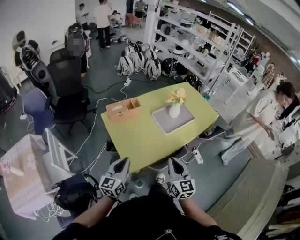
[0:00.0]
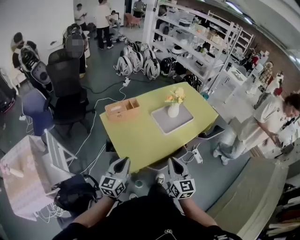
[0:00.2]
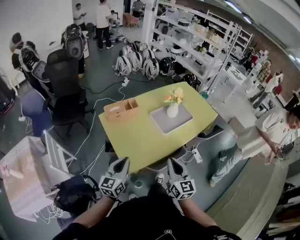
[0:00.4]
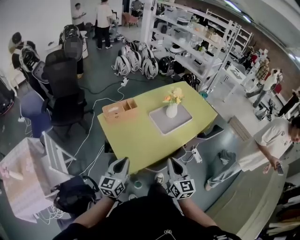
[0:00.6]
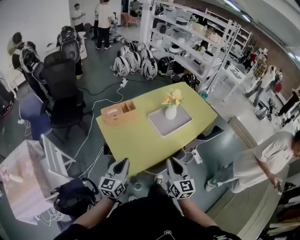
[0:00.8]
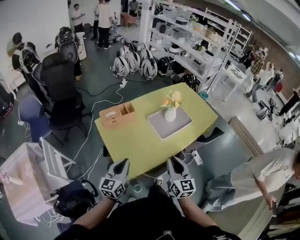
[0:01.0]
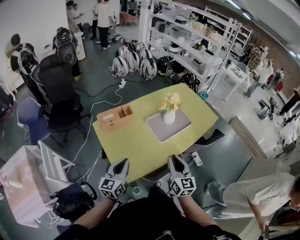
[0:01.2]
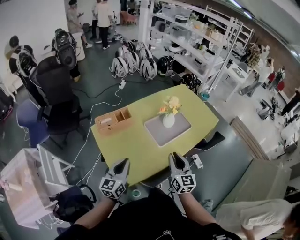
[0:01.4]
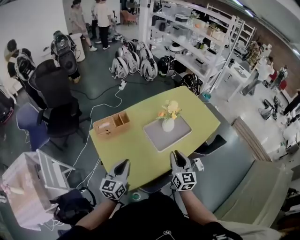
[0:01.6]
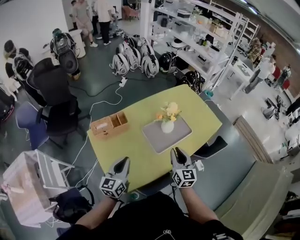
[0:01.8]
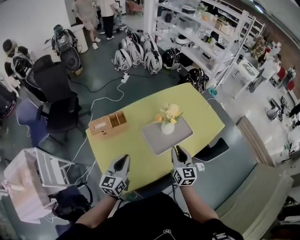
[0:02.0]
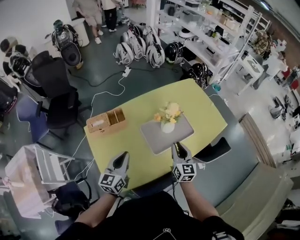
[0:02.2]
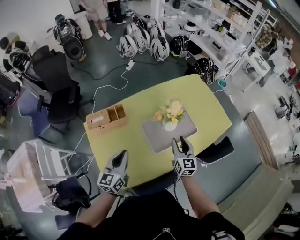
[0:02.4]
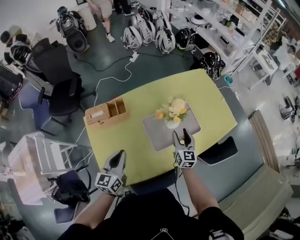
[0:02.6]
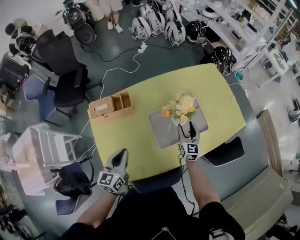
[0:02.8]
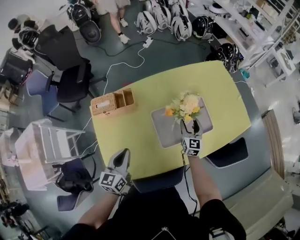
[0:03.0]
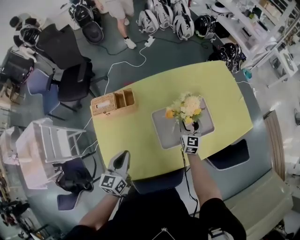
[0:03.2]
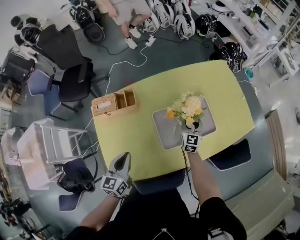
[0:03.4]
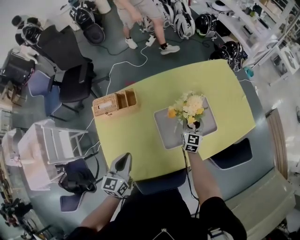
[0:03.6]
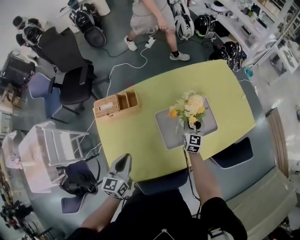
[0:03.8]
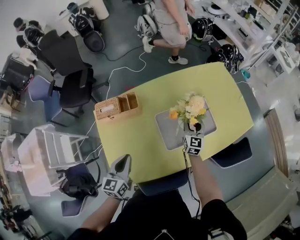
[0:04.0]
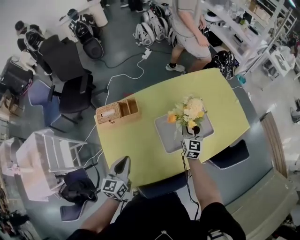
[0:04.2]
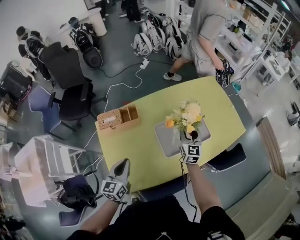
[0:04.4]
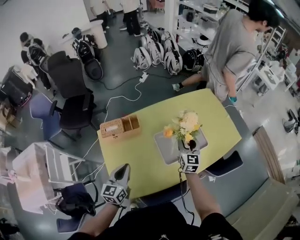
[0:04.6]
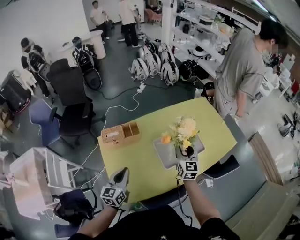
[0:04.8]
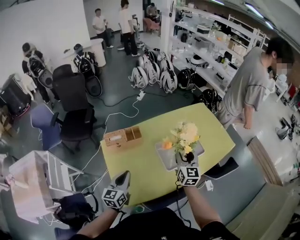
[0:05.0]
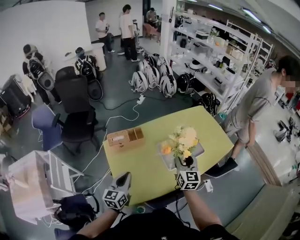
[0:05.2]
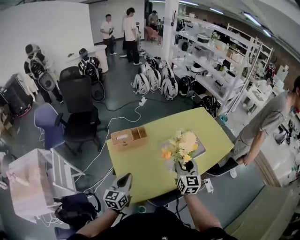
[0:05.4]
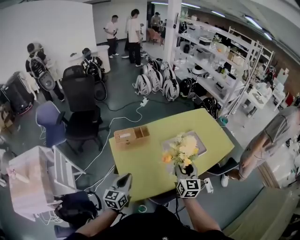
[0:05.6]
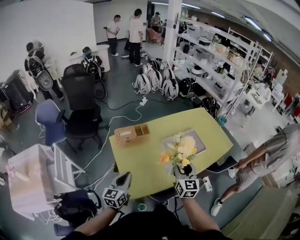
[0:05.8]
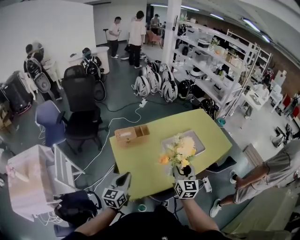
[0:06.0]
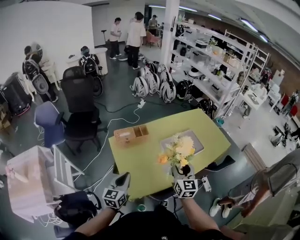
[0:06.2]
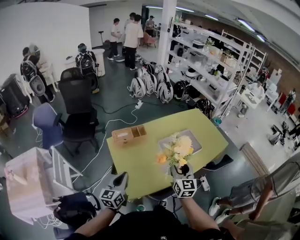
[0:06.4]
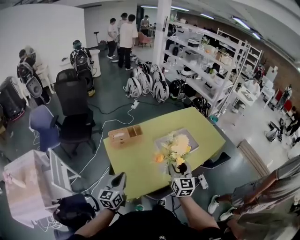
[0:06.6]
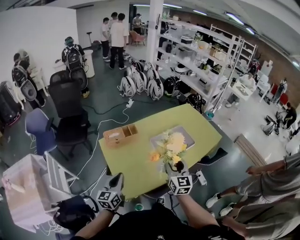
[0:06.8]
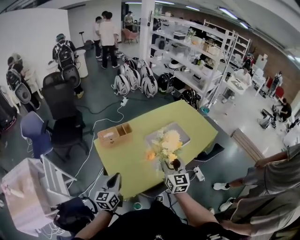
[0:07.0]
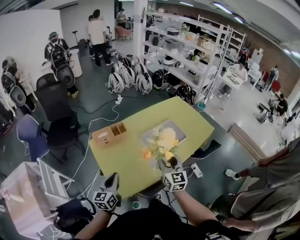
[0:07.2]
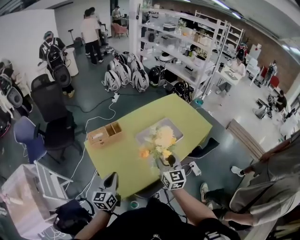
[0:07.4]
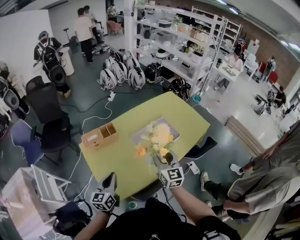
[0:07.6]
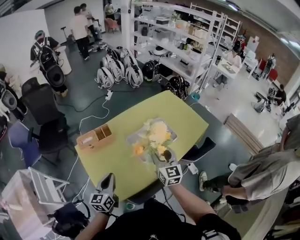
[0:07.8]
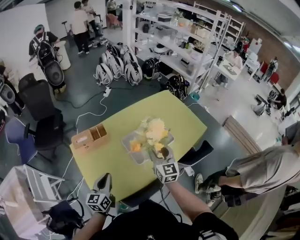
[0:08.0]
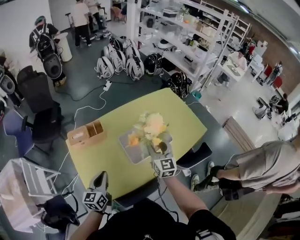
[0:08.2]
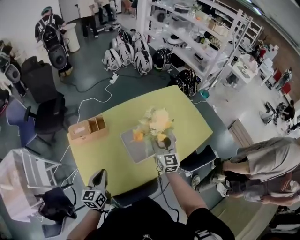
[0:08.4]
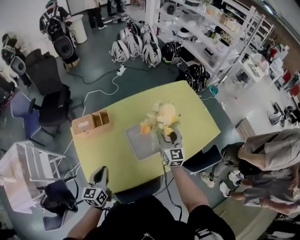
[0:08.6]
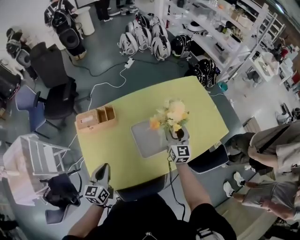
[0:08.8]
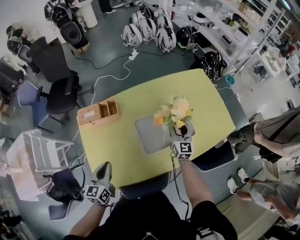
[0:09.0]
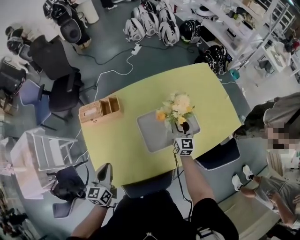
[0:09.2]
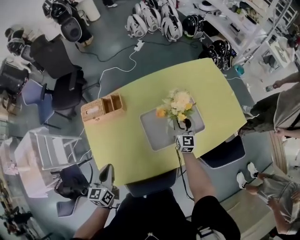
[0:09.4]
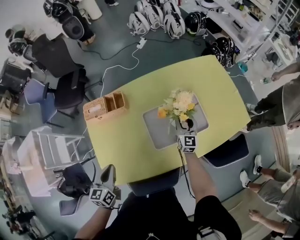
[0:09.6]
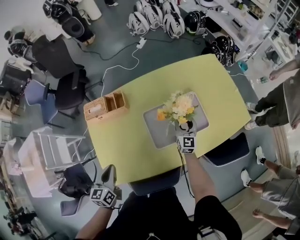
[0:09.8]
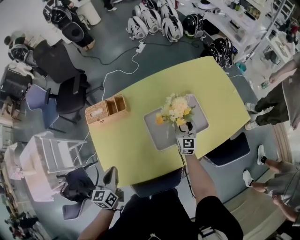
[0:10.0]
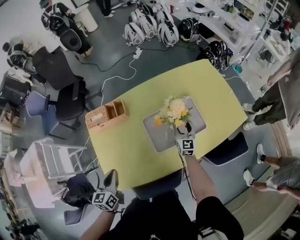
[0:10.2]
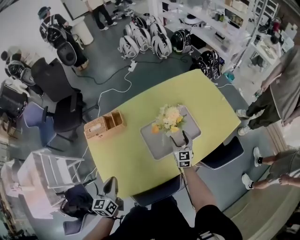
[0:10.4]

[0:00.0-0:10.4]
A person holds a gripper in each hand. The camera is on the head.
0:00.0 to 0:01.4: The right gripper is displaced forward and to the right by about 20 cm. The left gripper is displaced forward by about 15 cm.
0:01.4 to 0:03.0: The left gripper is displaced forward and downward by some 20 cm, and rotates roughly 20 degrees. The right gripper heads forward and downward, covering roughly 50 cm, and opens its fingers.
0:03.0 to 0:04.4: The left gripper ends up about 5 cm from where it was; the right gripper travels upward by roughly 10 cm.
0:04.4 to 0:06.0: The left gripper moves backward and to the left, some 25 cm; the right gripper travels backward, upward and to the left by about 40 cm.
0:06.0 to 0:07.4: Both grippers move to the right, approximately 5 cm.
0:07.4 to 0:09.0: The right gripper goes roughly 40 cm forward, downward and to the right; the left gripper moves forward, to the right and downward, roughly 20 cm.
0:09.0 to 0:10.4: The right gripper heads downward, covering roughly 10 cm, while the left gripper changes place by some 5 cm.

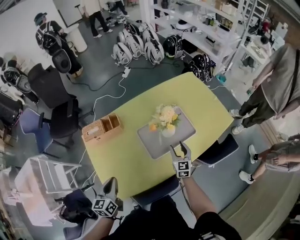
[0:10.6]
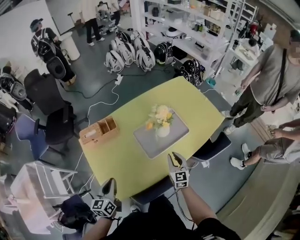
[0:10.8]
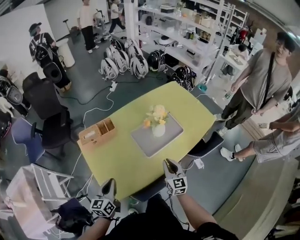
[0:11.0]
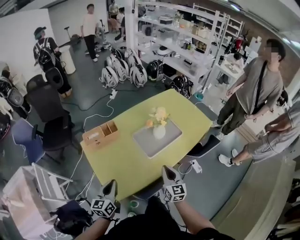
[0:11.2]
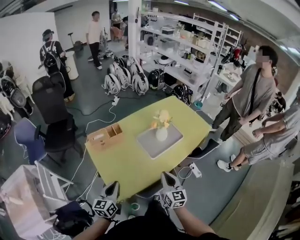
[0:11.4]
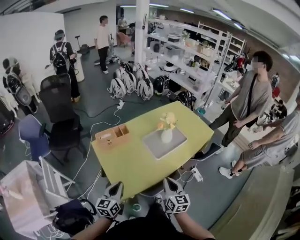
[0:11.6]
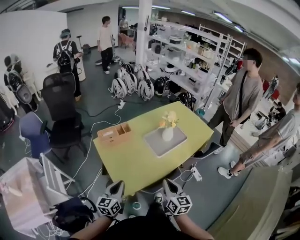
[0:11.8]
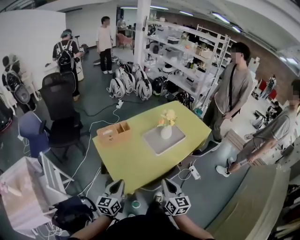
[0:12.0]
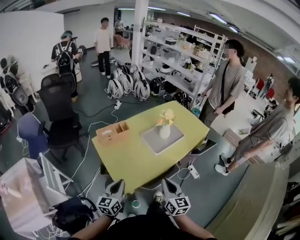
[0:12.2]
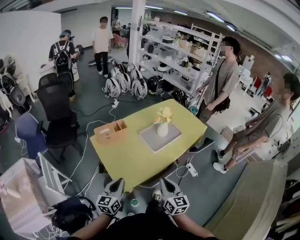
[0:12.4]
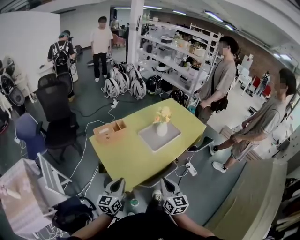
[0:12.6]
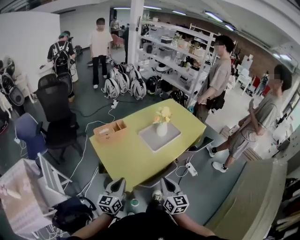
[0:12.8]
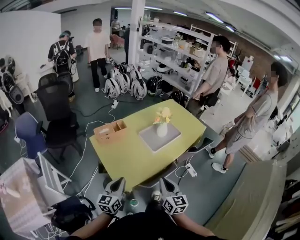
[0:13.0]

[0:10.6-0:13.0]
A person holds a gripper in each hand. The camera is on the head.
0:10.6 to 0:11.8: The right gripper goes roughly 50 cm backward, upward and to the left, swivels roughly 20 degrees, and closes up, while the left gripper goes roughly 20 cm backward, and rotates some 20 degrees.
0:11.8 to 0:13.0: The right gripper goes about 5 cm backward.

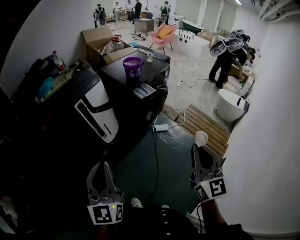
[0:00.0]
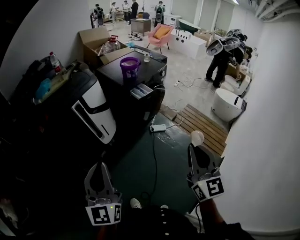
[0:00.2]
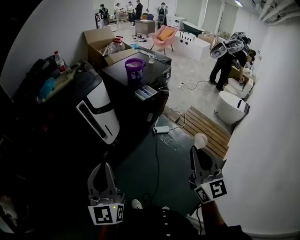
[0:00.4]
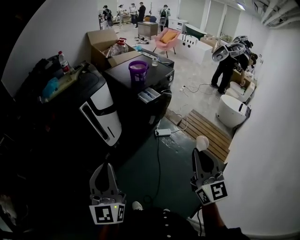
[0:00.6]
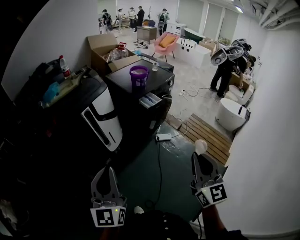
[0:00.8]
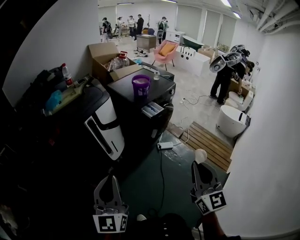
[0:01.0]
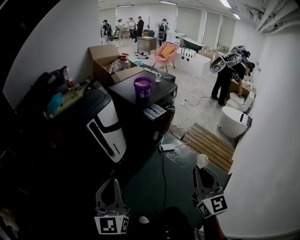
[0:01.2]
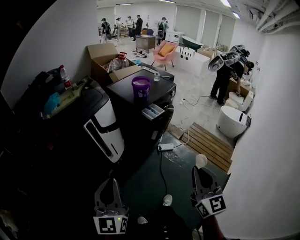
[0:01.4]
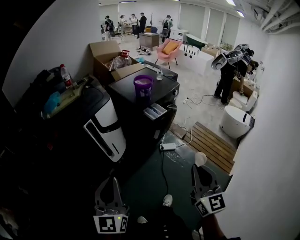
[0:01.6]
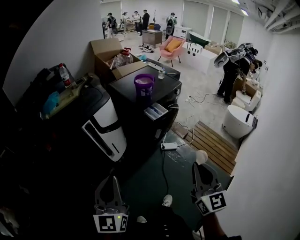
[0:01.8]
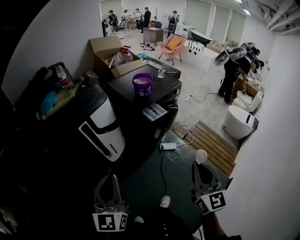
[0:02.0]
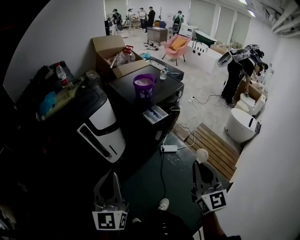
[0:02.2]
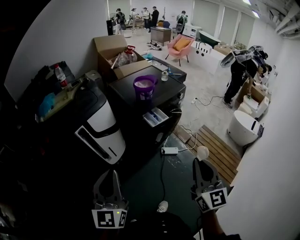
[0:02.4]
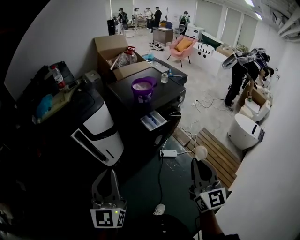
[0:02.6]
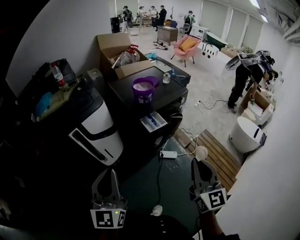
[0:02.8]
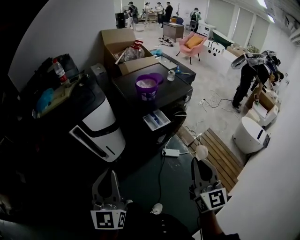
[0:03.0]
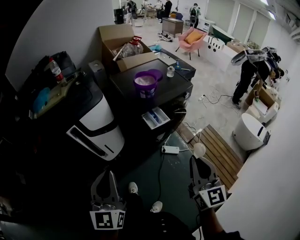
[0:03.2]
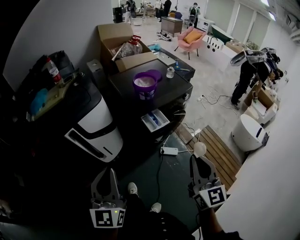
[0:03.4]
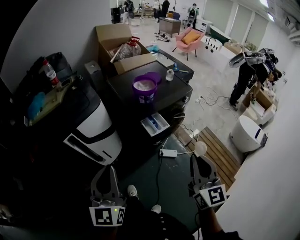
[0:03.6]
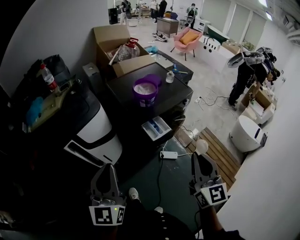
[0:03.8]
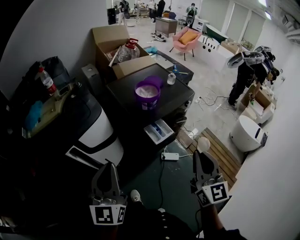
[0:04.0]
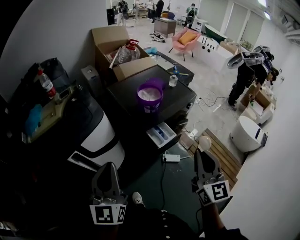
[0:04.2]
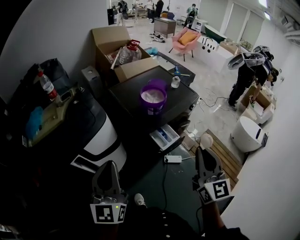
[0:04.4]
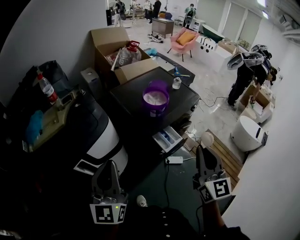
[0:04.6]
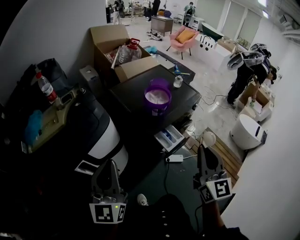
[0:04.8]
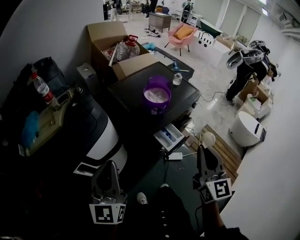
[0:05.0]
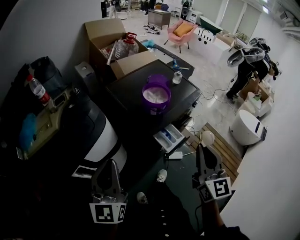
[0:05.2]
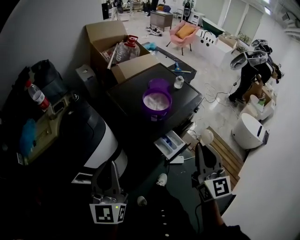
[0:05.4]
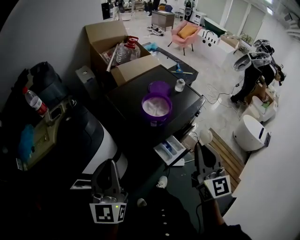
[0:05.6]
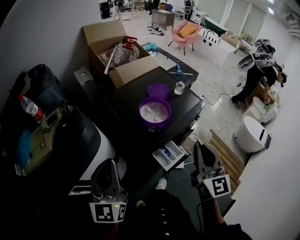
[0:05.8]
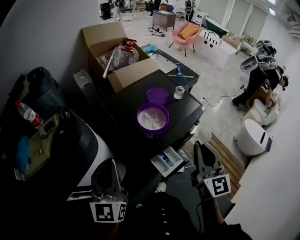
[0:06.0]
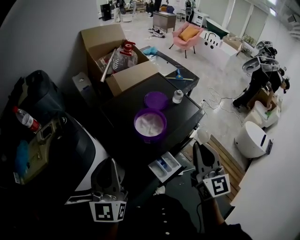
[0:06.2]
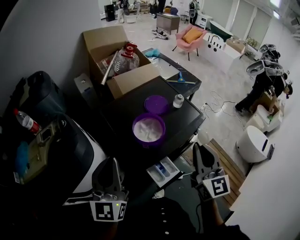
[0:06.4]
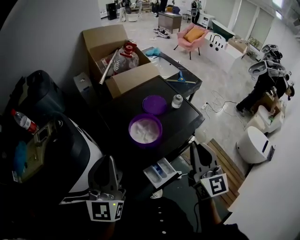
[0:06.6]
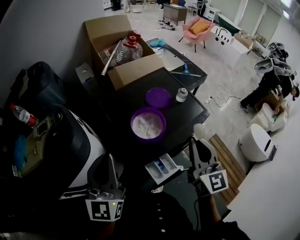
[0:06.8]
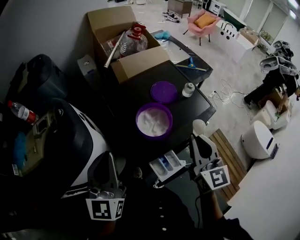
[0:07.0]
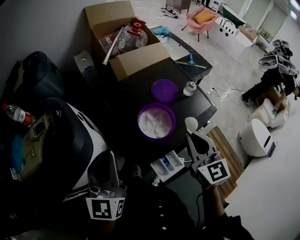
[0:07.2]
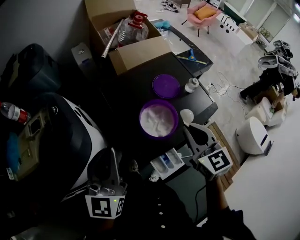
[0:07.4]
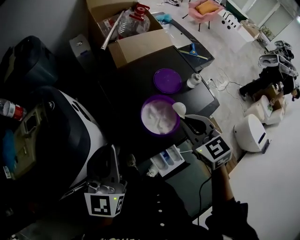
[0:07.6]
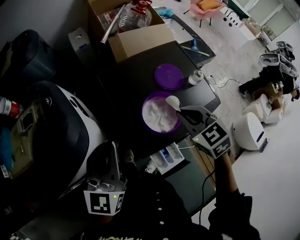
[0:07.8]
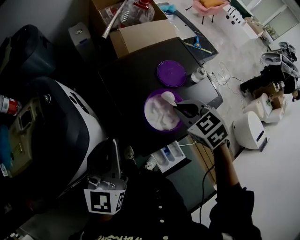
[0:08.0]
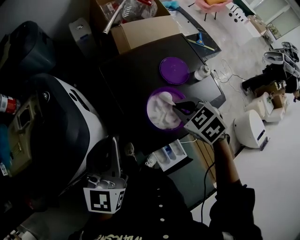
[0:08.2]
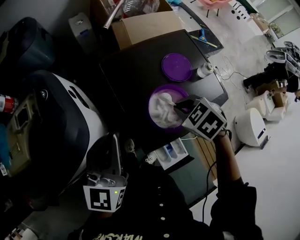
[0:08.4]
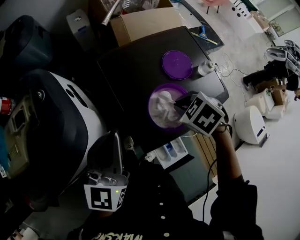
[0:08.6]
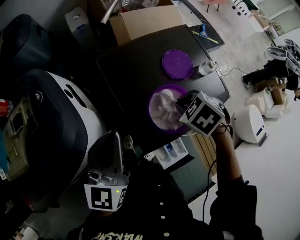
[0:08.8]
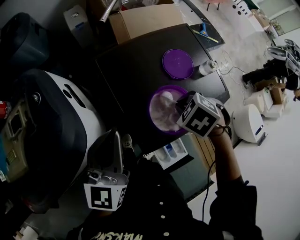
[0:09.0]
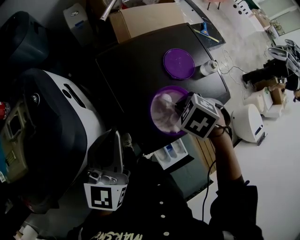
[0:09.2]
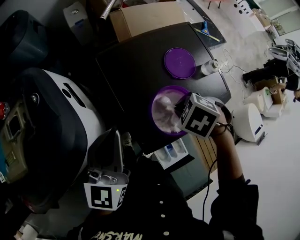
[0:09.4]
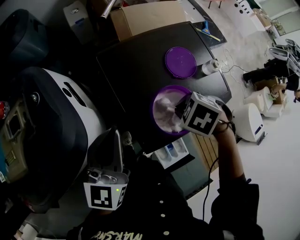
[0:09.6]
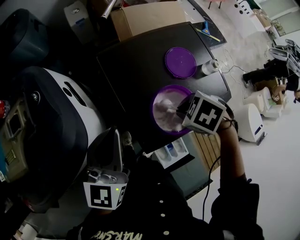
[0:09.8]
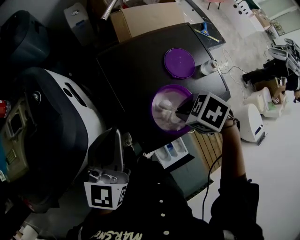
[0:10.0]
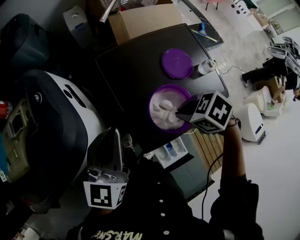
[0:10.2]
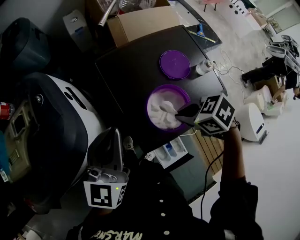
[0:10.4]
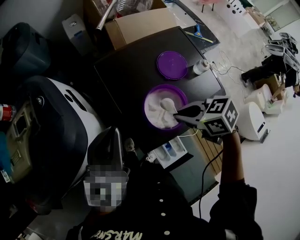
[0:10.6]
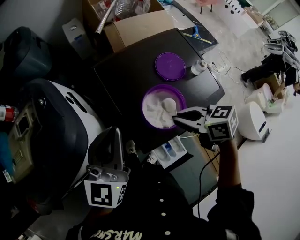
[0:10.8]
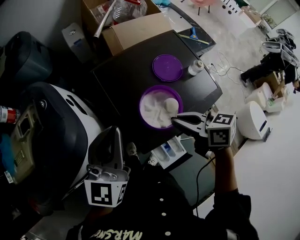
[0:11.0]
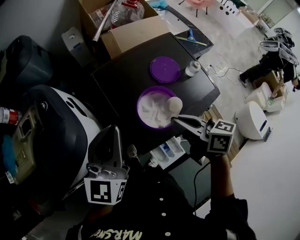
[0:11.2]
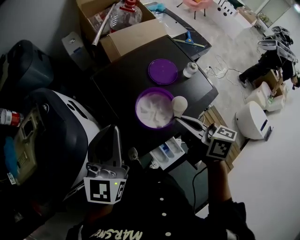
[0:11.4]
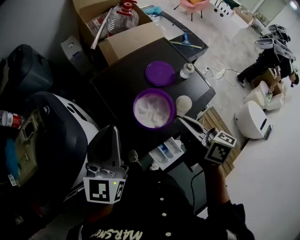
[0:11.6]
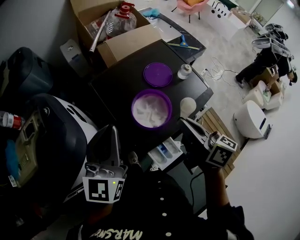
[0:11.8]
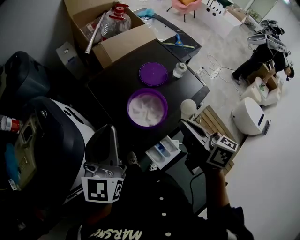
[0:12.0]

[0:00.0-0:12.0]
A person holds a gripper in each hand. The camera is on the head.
0:00.0 to 0:01.6: The right gripper heads forward and to the left, covering about 10 cm; the left gripper moves forward, some 5 cm.
0:01.6 to 0:03.0: Both grippers travel together forward and to the right, approximately 20 cm.
0:03.0 to 0:04.4: The two grippers go roughly 20 cm forward.
0:04.4 to 0:06.0: Both grippers travel together forward, roughly 20 cm.
0:06.0 to 0:07.6: The left gripper shifts some 10 cm forward. Meanwhile the right gripper heads forward and downward, covering about 20 cm, and tilts its fingers about 30 degrees downward.
0:07.6 to 0:09.0: The left gripper travels downward by approximately 5 cm, while the right gripper shifts approximately 10 cm downward, and points its fingers approximately 50 degrees further downward.
0:09.0 to 0:10.4: The right gripper turns by approximately 30 degrees.
0:10.4 to 0:12.0: The left gripper moves upward, approximately 5 cm. Meanwhile the right gripper heads upward, covering approximately 10 cm, and tilts its fingers some 50 degrees upward.
